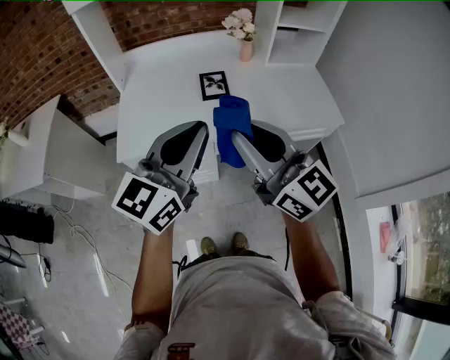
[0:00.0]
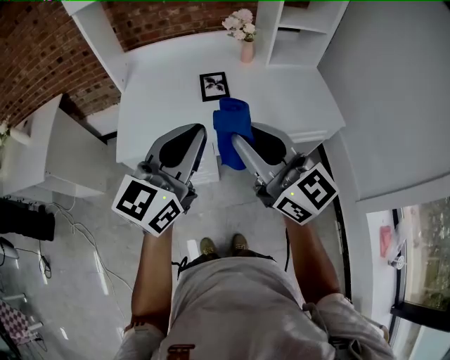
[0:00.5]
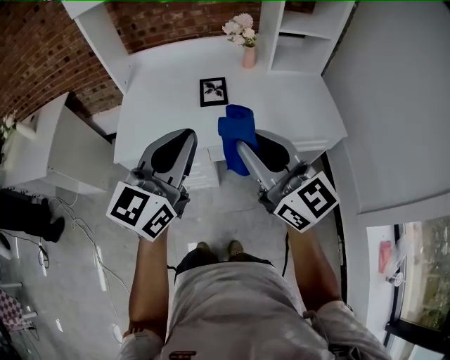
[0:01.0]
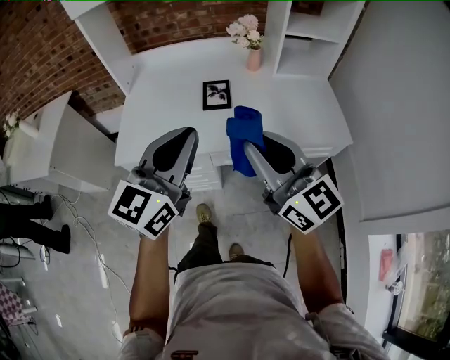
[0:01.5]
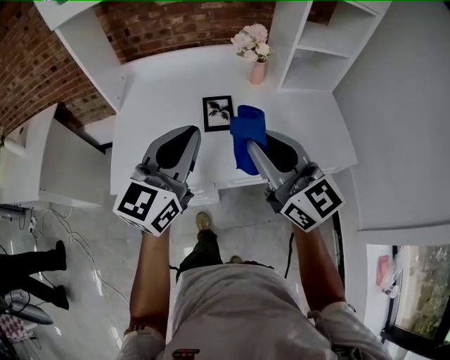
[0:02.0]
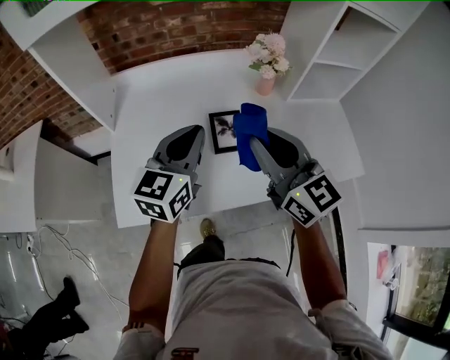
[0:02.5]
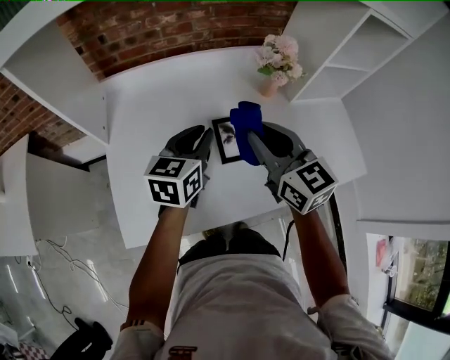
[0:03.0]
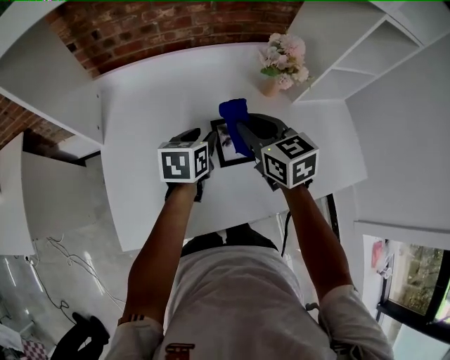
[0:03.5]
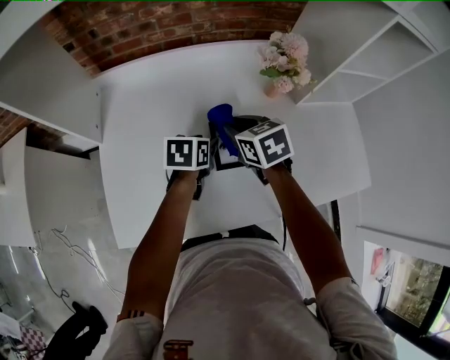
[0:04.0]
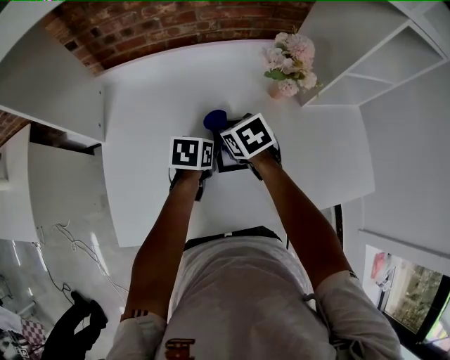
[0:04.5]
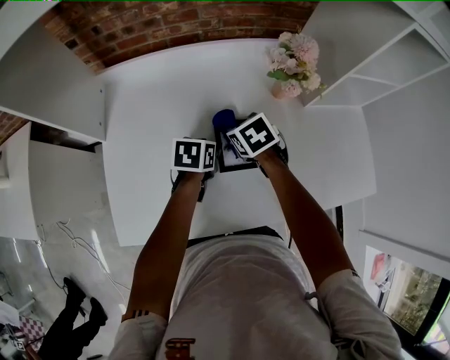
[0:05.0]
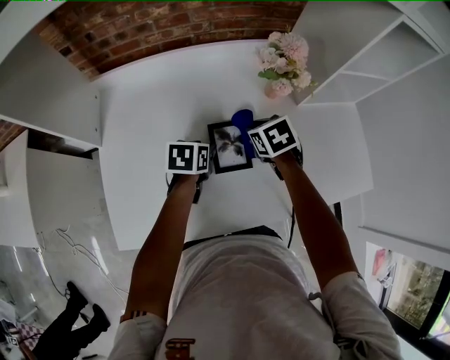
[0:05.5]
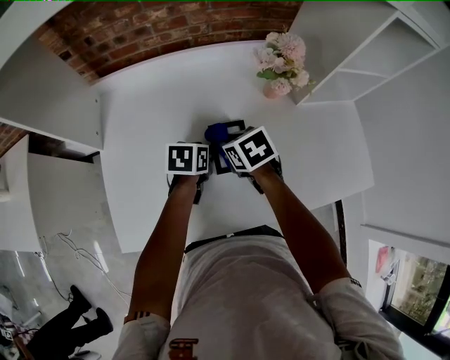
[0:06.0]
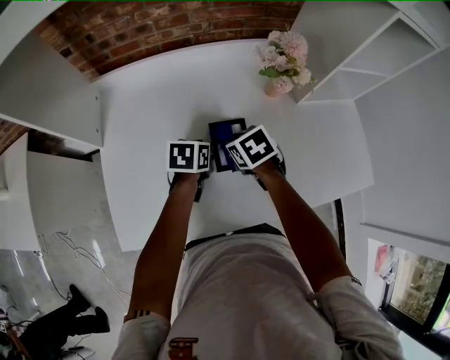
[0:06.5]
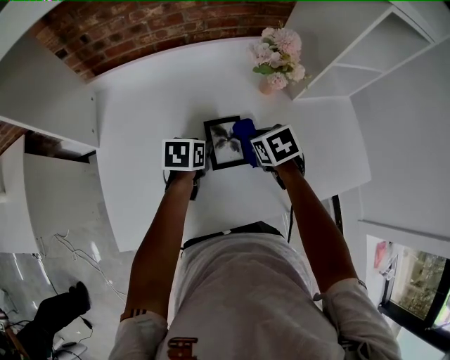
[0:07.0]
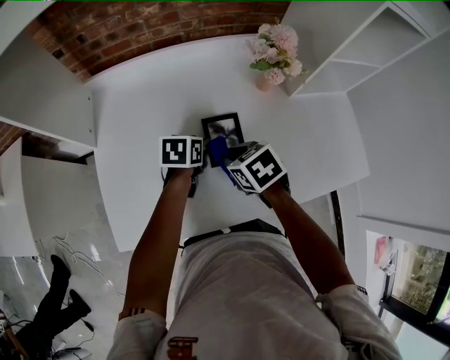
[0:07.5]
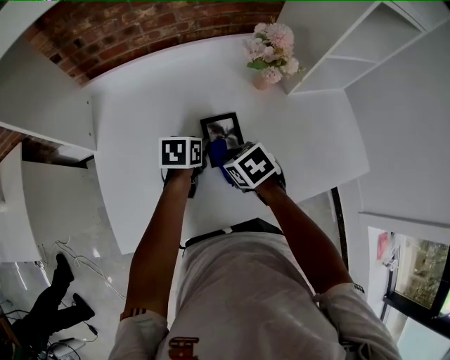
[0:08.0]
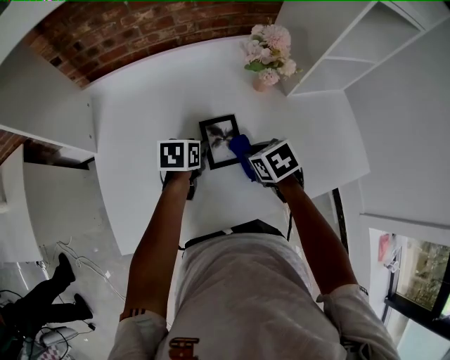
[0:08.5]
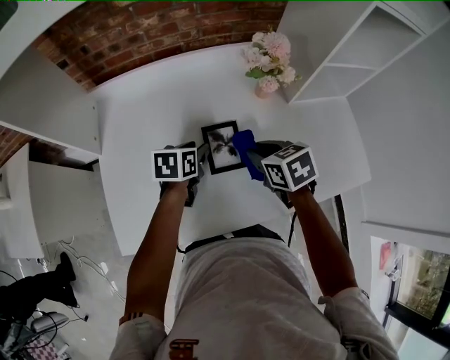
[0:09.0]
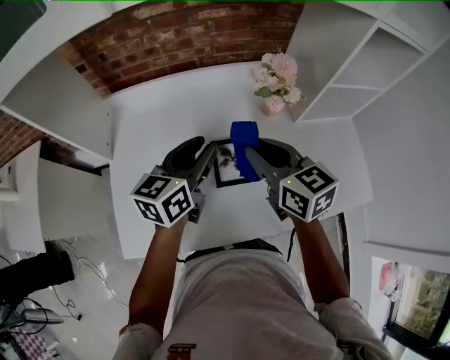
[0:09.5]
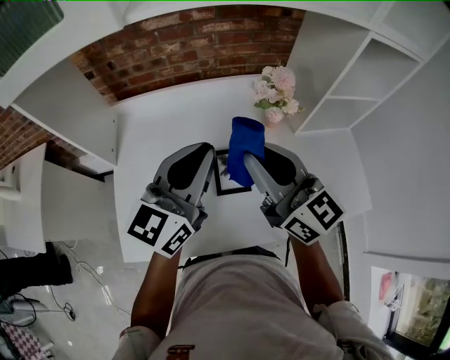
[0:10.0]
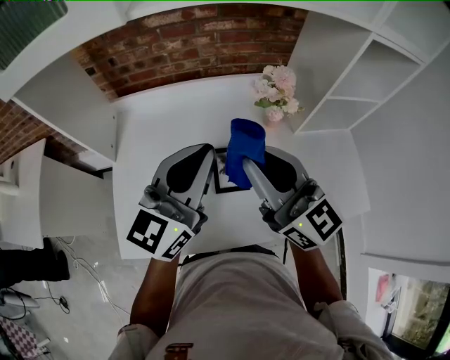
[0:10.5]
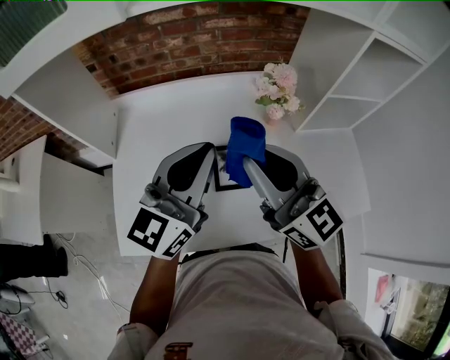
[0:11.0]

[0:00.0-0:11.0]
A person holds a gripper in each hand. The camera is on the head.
0:00.0 to 0:02.0: The two grippers go about 15 cm forward.
0:02.0 to 0:03.5: Both grippers move forward and downward, some 35 cm. The right gripper tilts its fingers approximately 30 degrees downward. The left gripper points its fingers about 40 degrees further downward, and opens up.
0:03.5 to 0:05.5: The left gripper moves downward, approximately 10 cm, while the right gripper moves downward and to the right, some 15 cm, and tips its fingers downward by roughly 30 degrees.
0:05.5 to 0:07.5: The right gripper is displaced backward and to the left by roughly 15 cm.
0:07.5 to 0:09.0: The right gripper travels to the right by roughly 10 cm.
0:09.0 to 0:11.0: Both grippers travel together upward, approximately 30 cm. The left gripper tips its fingers upward by roughly 50 degrees, and closes its fingers, while the right gripper tips its fingers upward by about 60 degrees.

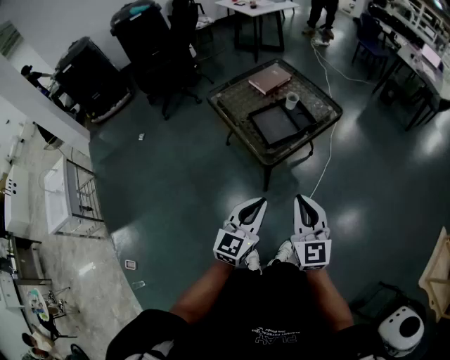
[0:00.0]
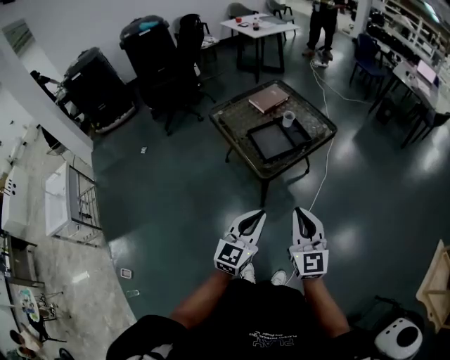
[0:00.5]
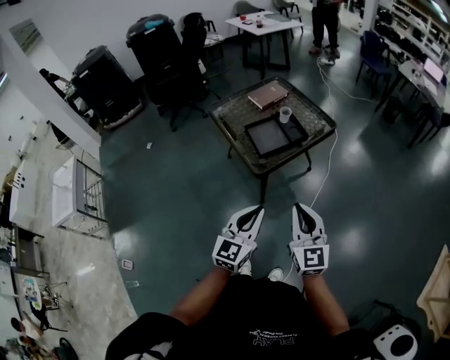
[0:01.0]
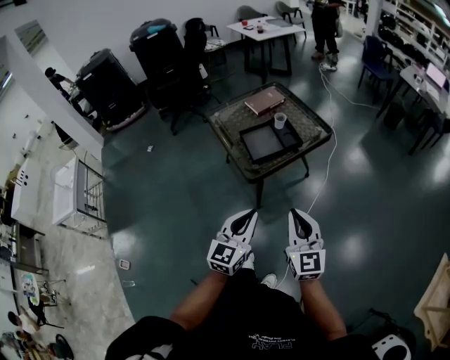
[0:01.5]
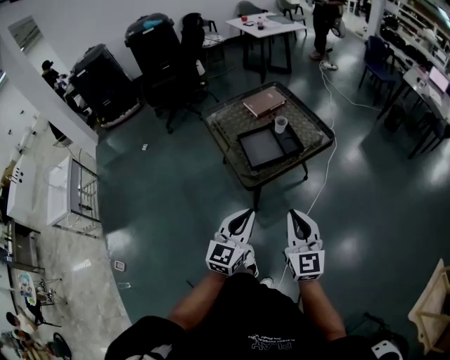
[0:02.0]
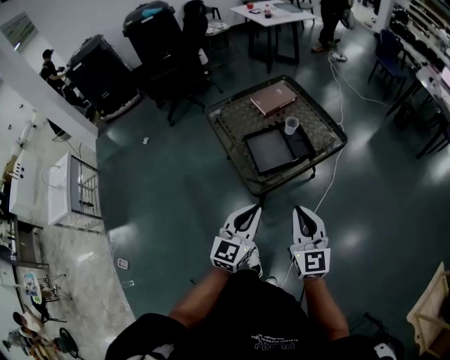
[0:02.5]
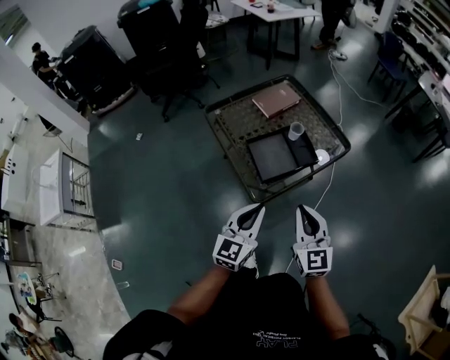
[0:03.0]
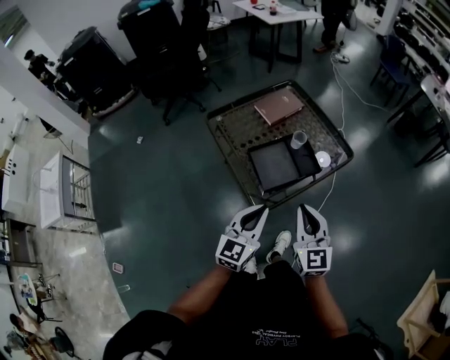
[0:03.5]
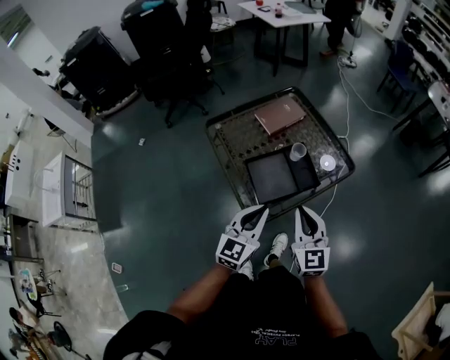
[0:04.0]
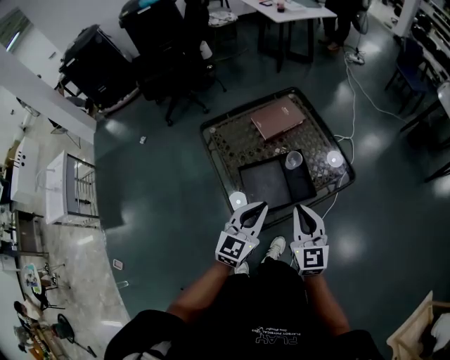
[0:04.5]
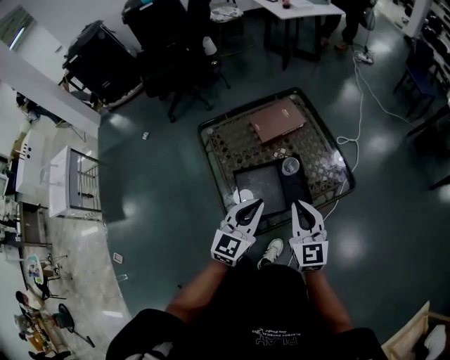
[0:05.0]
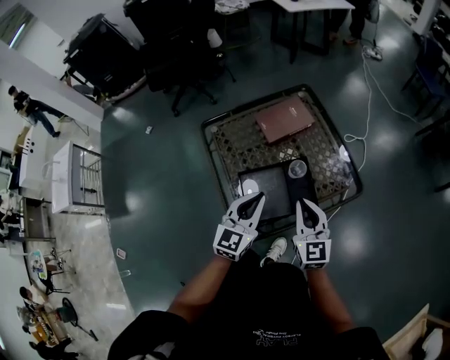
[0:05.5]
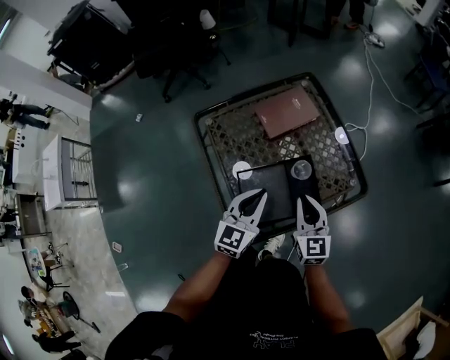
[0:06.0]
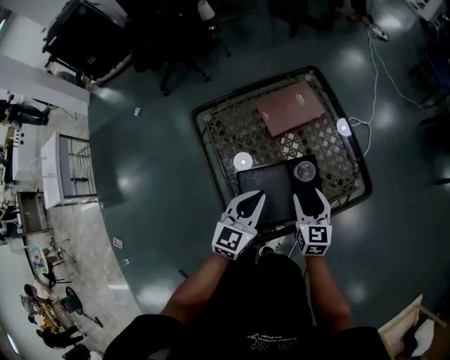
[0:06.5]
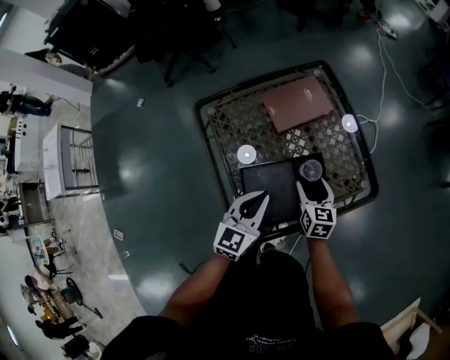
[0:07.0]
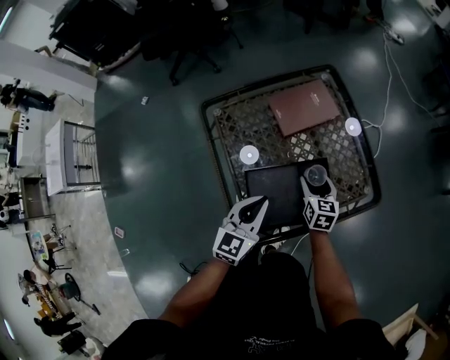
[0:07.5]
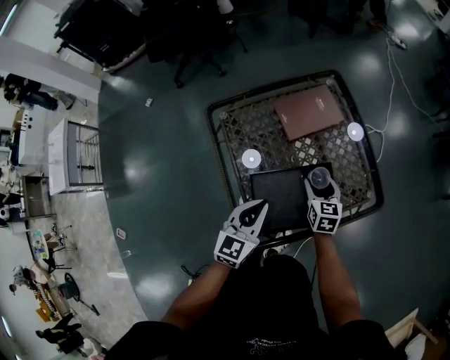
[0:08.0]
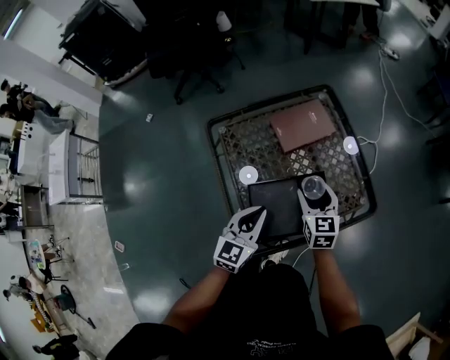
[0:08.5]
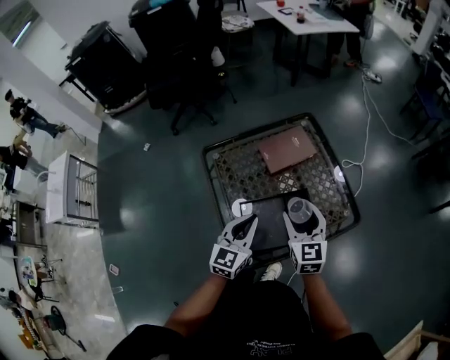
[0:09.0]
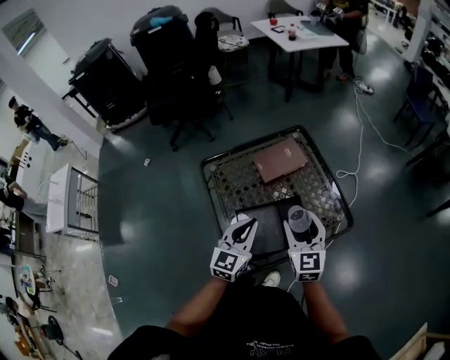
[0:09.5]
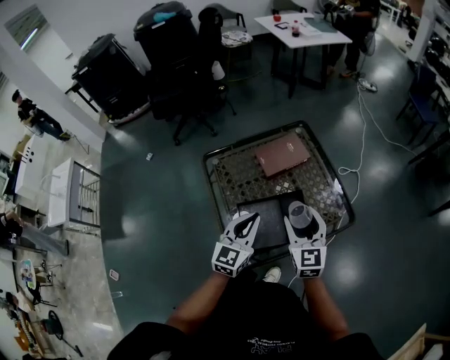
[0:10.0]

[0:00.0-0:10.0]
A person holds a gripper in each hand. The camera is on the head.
0:00.0 to 0:02.0: The grippers both shift to the right by some 10 cm.
0:02.0 to 0:04.0: The grippers both shift forward by some 25 cm.
0:04.0 to 0:06.0: The right gripper travels forward and downward by approximately 25 cm. Meanwhile the left gripper heads forward, covering about 20 cm.
0:06.0 to 0:08.0: The right gripper heads downward and forward, covering about 15 cm, rotates approximately 20 degrees, and opens up. Meanwhile the left gripper shifts by roughly 5 cm.
0:08.0 to 0:10.0: The right gripper travels upward by some 20 cm, and rotates approximately 30 degrees. Meanwhile the left gripper travels upward by about 10 cm.

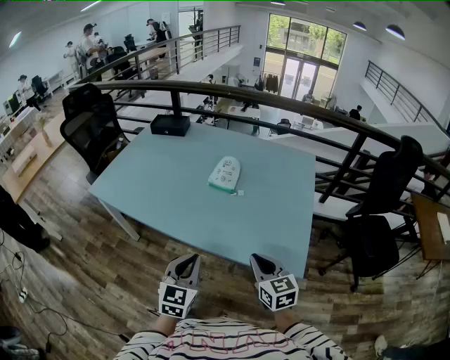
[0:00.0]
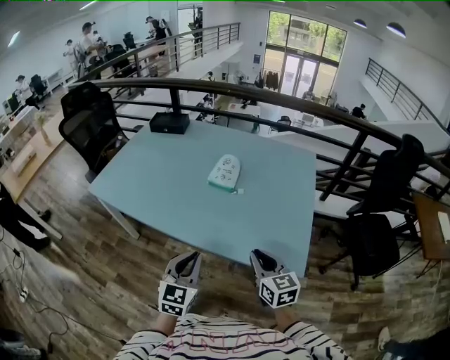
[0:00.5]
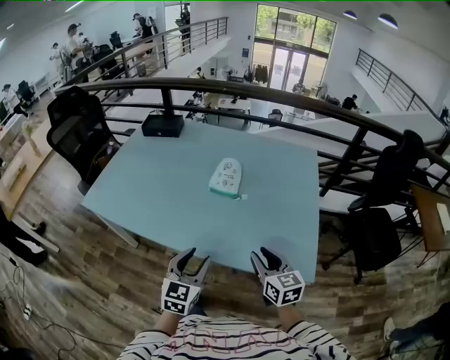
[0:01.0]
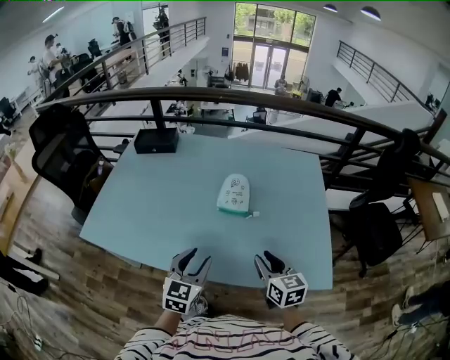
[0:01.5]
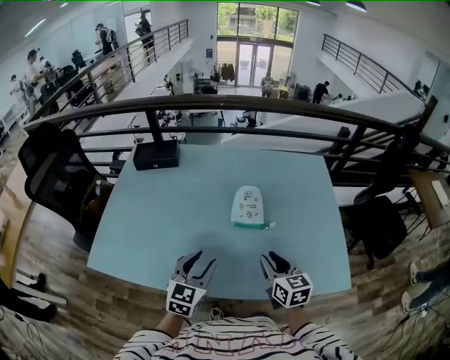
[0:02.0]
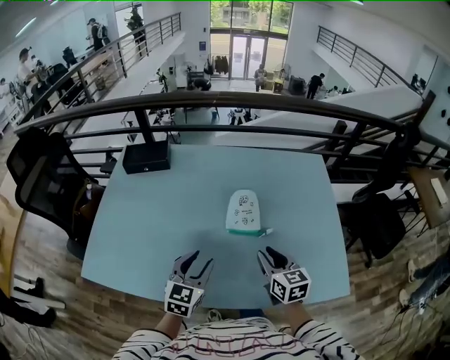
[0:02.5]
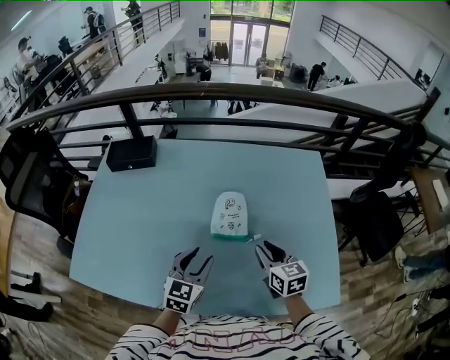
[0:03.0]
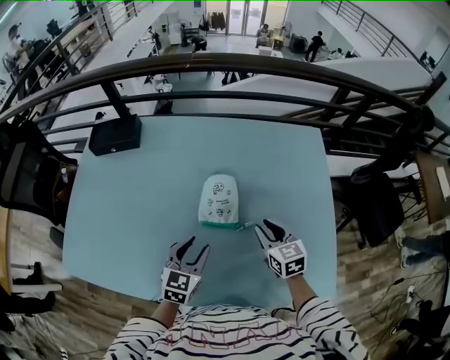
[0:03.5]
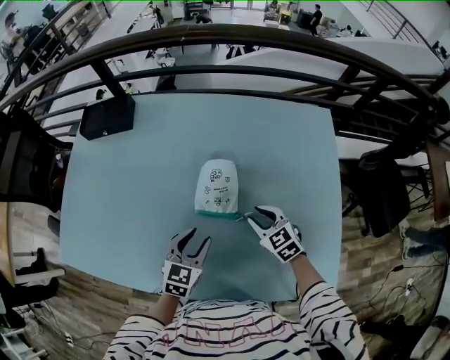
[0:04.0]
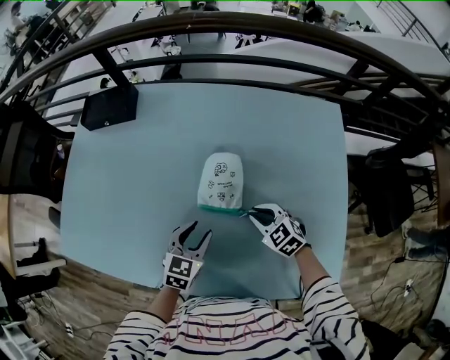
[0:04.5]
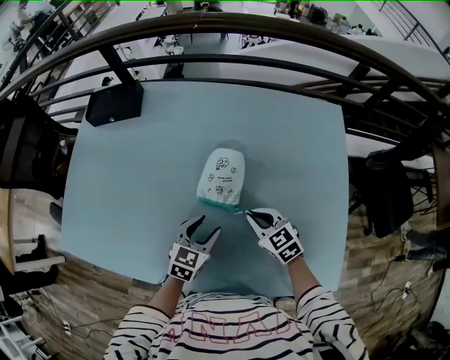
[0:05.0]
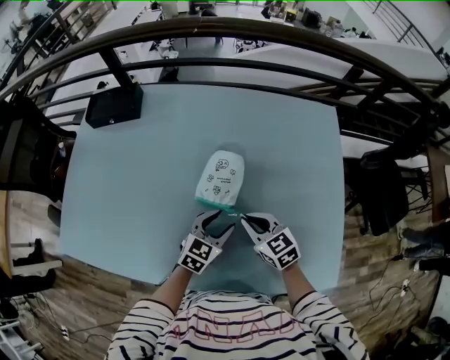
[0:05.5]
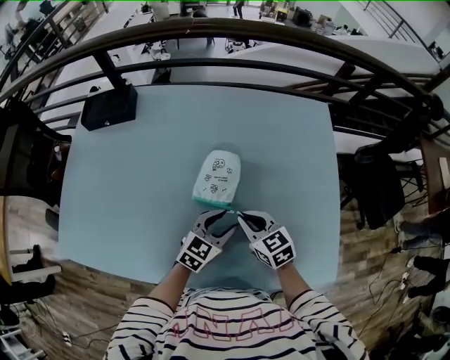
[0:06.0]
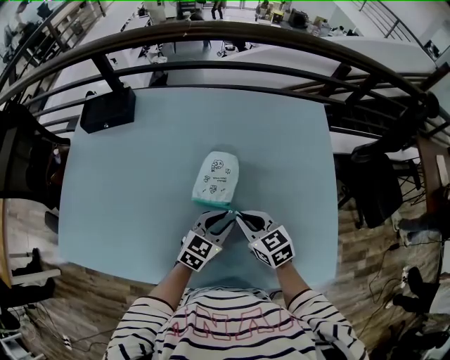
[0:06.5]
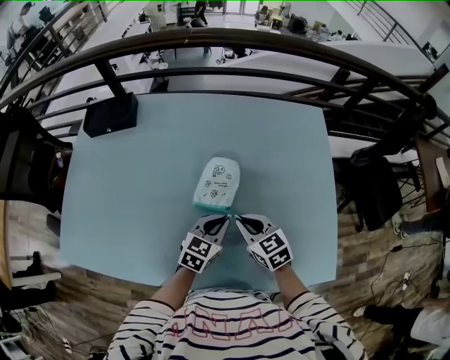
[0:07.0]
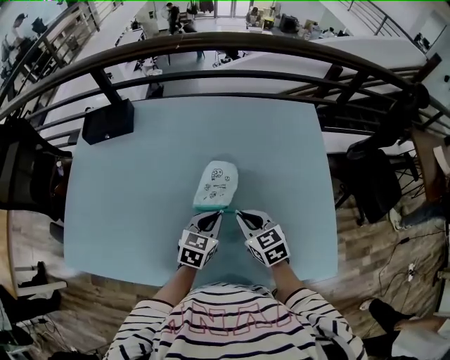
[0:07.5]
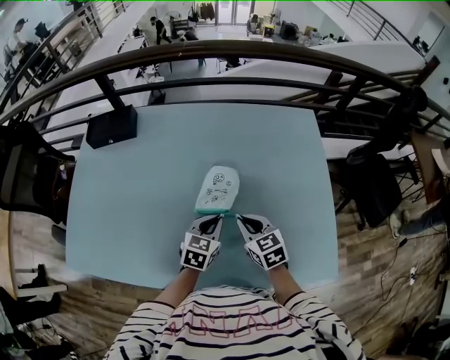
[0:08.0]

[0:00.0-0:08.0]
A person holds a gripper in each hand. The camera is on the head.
0:00.0 to 0:02.0: Both grippers move forward and to the left, approximately 30 cm. The right gripper swivels approximately 20 degrees, and opens; the left gripper swivels approximately 20 degrees, and opens its fingers.
0:02.0 to 0:04.0: The left gripper is displaced forward, downward and to the right by roughly 20 cm. Meanwhile the right gripper heads forward and downward, covering roughly 25 cm, and turns by some 40 degrees.
0:04.0 to 0:06.0: The right gripper heads to the left, covering about 5 cm, and closes. The left gripper shifts roughly 5 cm to the right, and changes its angle by about 20 degrees.
0:06.0 to 0:08.0: The left gripper closes its fingers.
